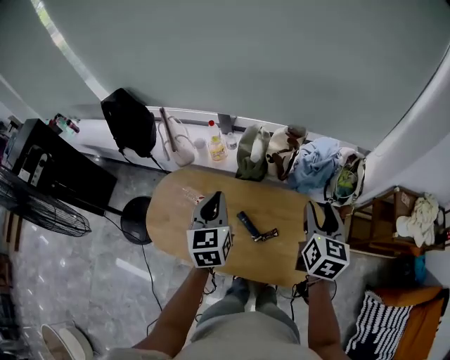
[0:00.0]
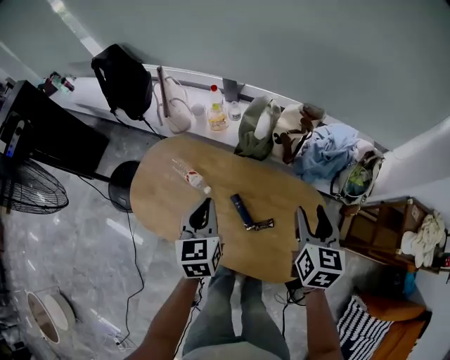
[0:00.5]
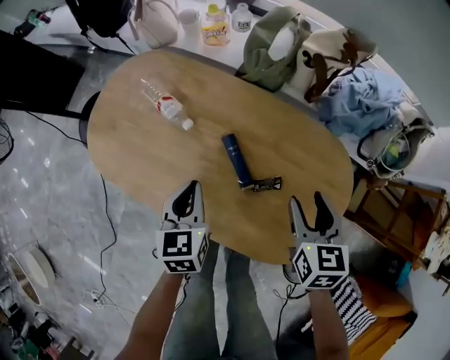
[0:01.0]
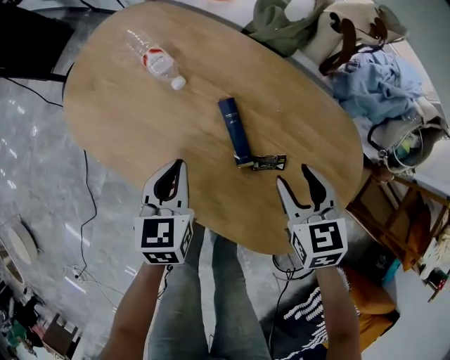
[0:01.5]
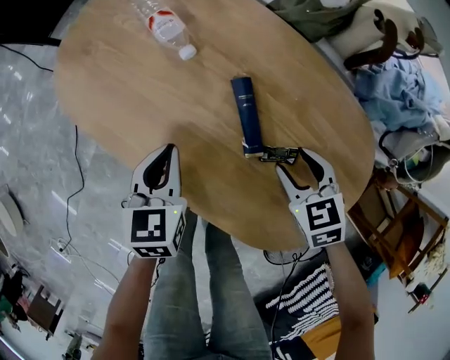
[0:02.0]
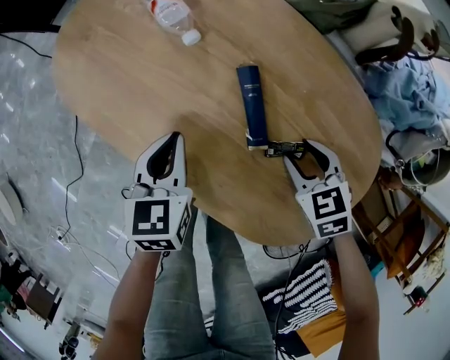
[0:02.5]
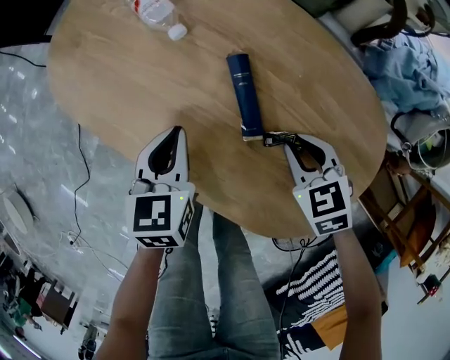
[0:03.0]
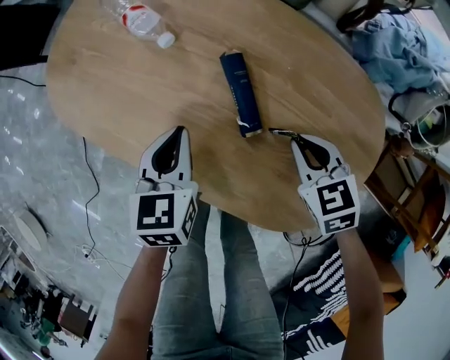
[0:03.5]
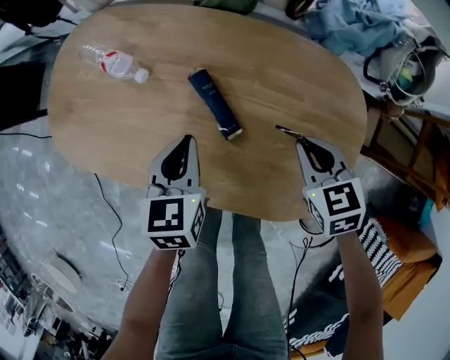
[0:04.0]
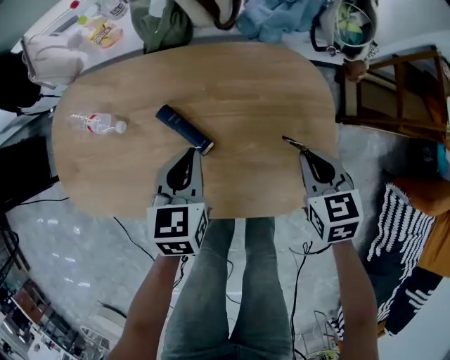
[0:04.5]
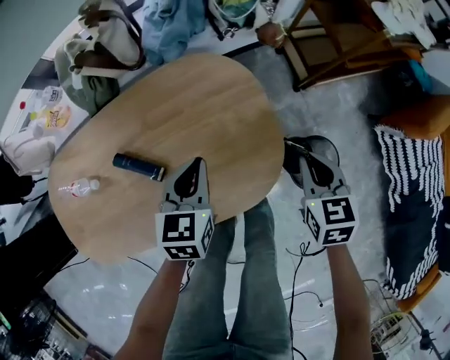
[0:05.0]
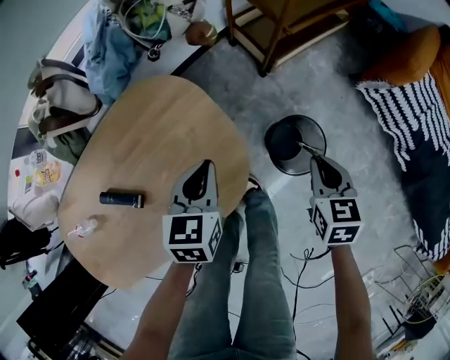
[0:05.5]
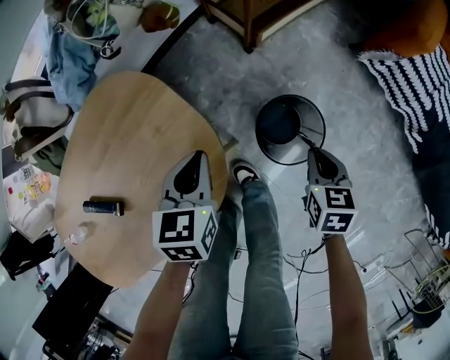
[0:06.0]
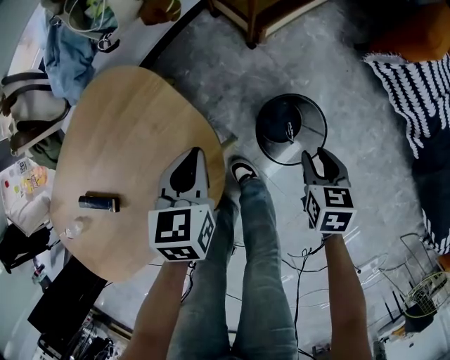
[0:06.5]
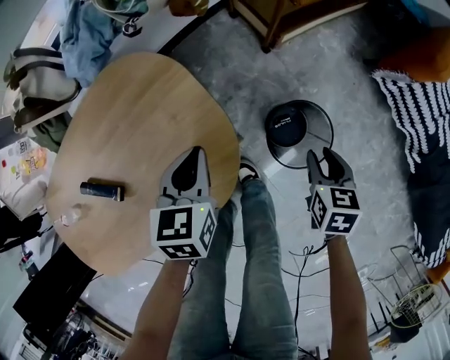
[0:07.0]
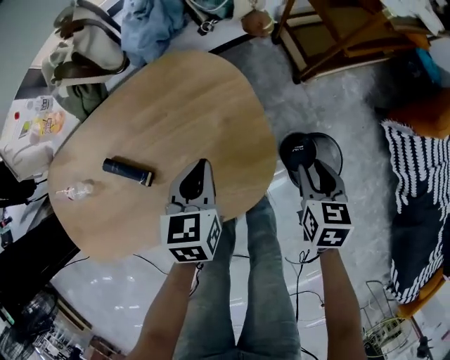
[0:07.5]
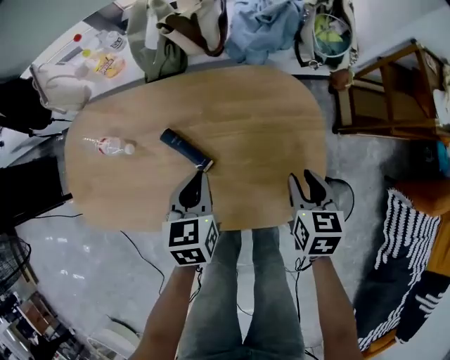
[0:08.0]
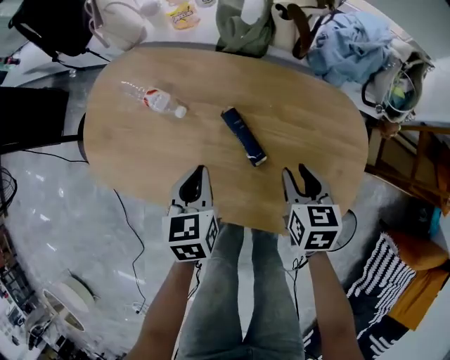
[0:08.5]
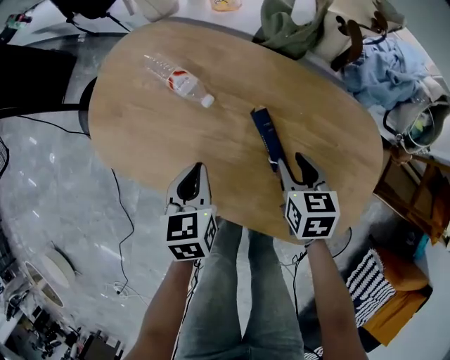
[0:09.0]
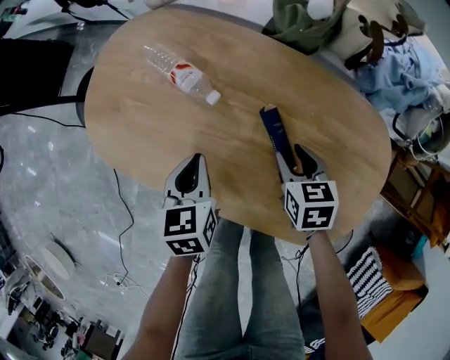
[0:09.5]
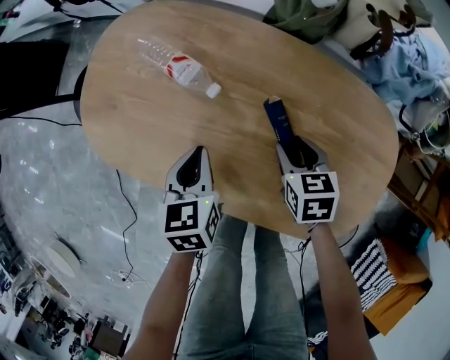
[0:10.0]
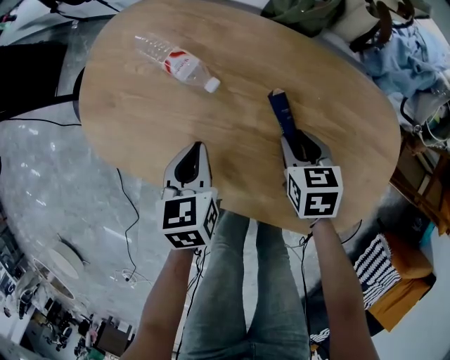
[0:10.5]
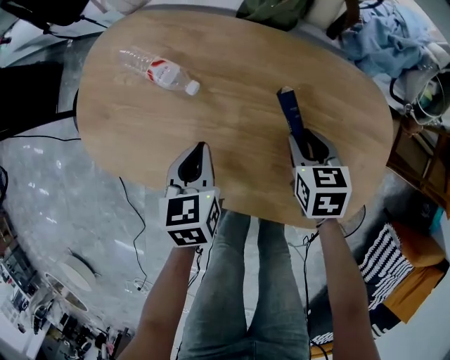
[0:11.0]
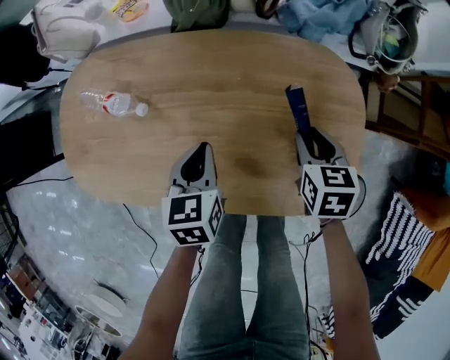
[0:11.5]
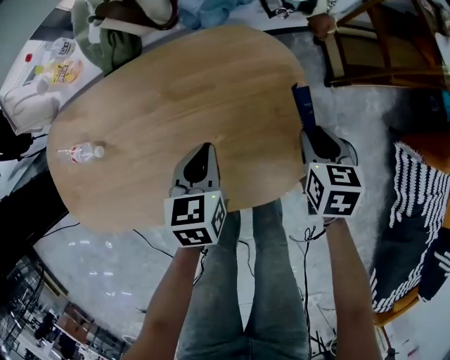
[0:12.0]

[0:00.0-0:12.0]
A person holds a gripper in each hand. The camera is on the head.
0:00.0 to 0:02.0: The grippers both shift downward by some 40 cm. The right gripper tilts its fingers about 40 degrees downward; the left gripper turns by about 30 degrees.
0:02.0 to 0:04.0: The left gripper moves approximately 10 cm, while the right gripper moves roughly 10 cm, turns by some 30 degrees, and closes its fingers.
0:04.0 to 0:06.0: The two grippers travel together, some 40 cm. The left gripper rotates about 60 degrees; the right gripper rotates around the line of its fingers by approximately 70 degrees, clockwise from behind.
0:06.0 to 0:08.0: The right gripper changes place by roughly 35 cm, rotates about 40 degrees, and opens up. Meanwhile the left gripper changes place by approximately 35 cm, and swivels roughly 40 degrees.
0:08.0 to 0:10.0: The left gripper shifts by about 25 cm, and rotates about 30 degrees; the right gripper shifts by about 30 cm, and turns by some 40 degrees.
0:10.0 to 0:12.0: The left gripper ends up approximately 30 cm from where it was, and turns by roughly 40 degrees. The right gripper moves about 35 cm, and rotates approximately 40 degrees.

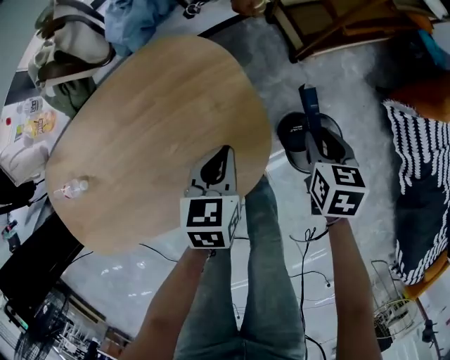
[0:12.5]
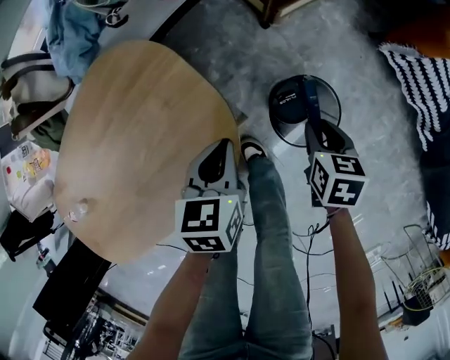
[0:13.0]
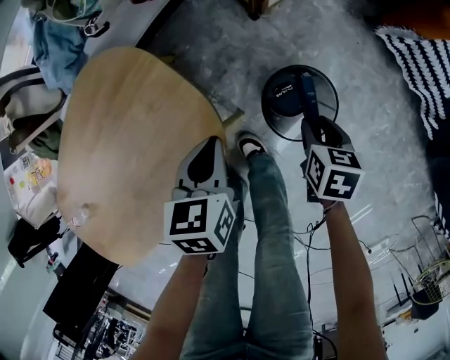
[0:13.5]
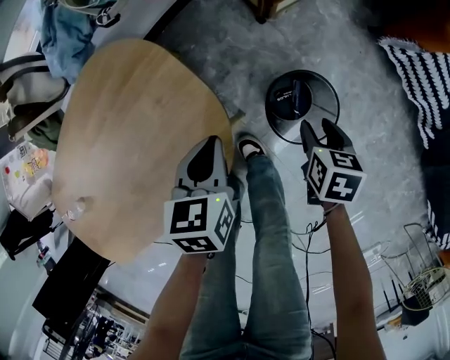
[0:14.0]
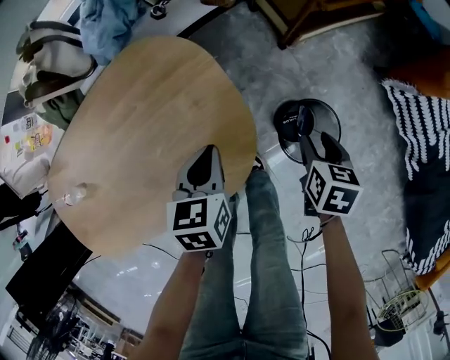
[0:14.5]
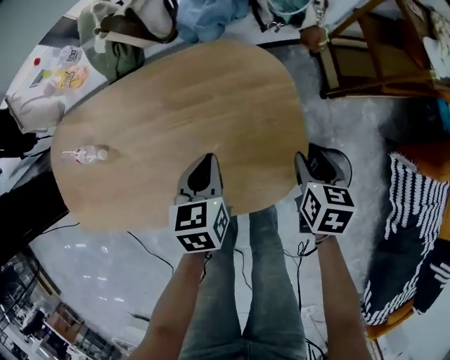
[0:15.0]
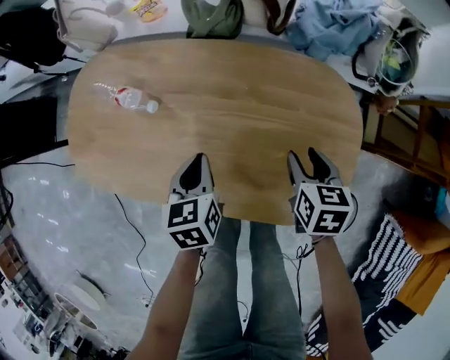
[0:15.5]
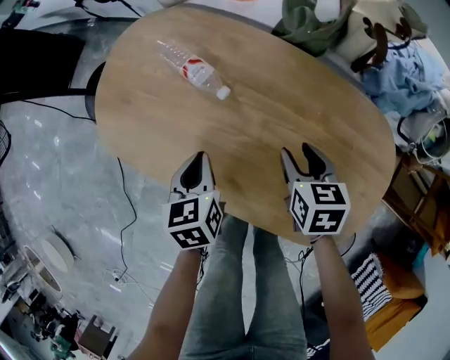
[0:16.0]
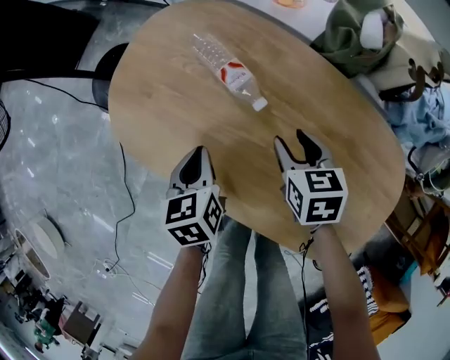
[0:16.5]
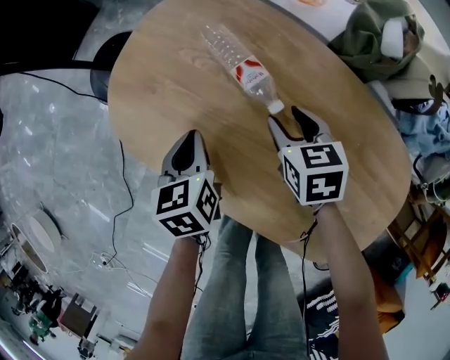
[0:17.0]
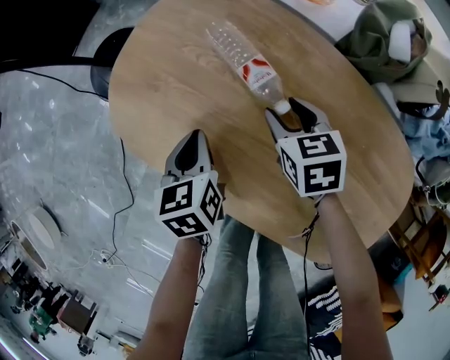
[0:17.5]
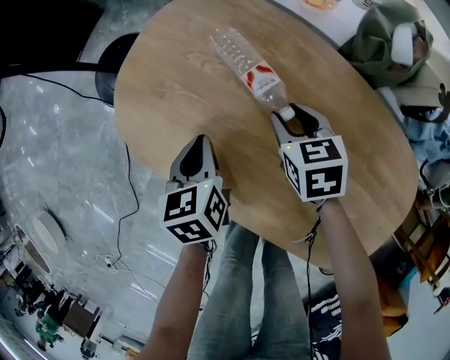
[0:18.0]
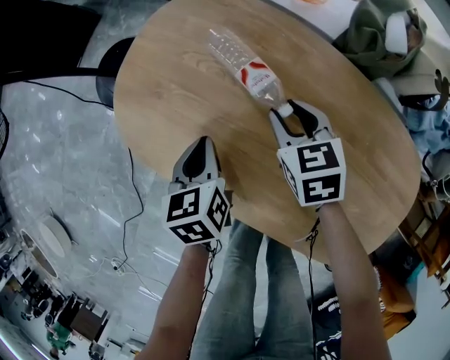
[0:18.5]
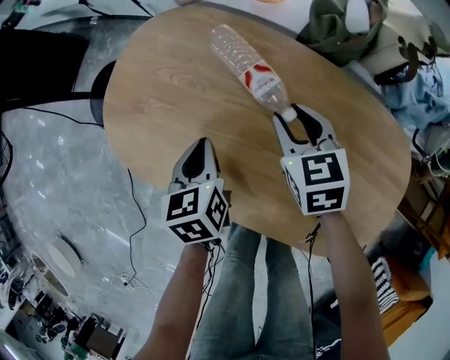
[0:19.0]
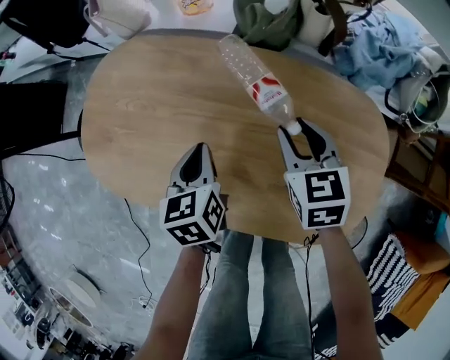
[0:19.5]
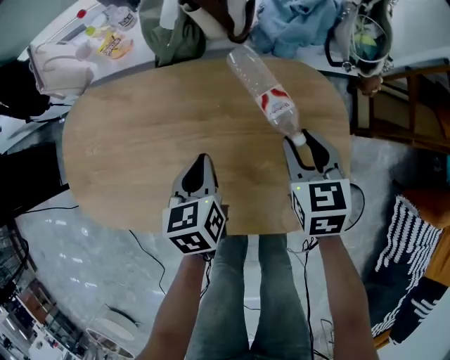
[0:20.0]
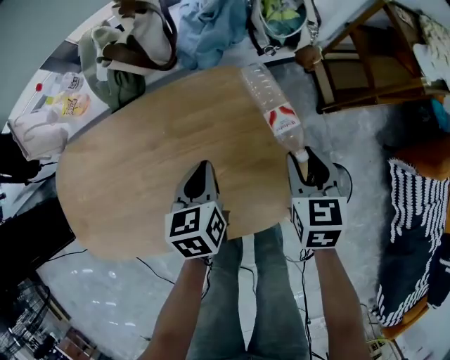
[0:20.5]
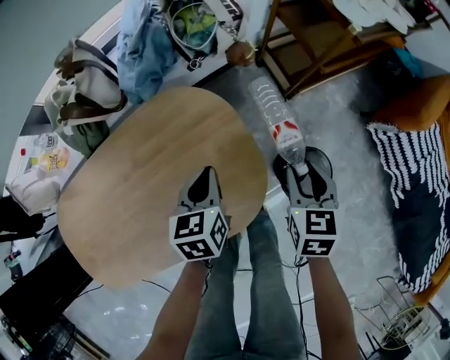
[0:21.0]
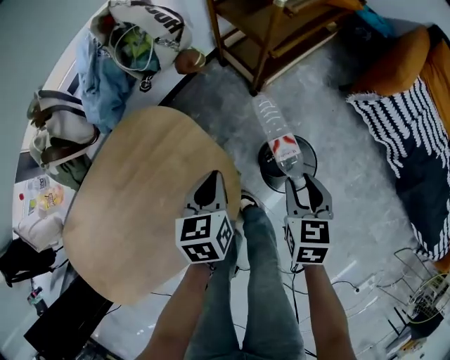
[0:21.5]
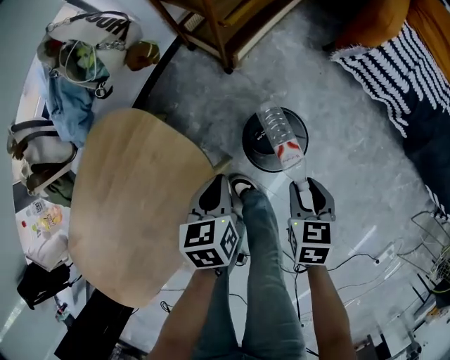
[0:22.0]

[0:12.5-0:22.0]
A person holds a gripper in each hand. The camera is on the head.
0:12.5 to 0:14.5: The right gripper heads to the right, covering roughly 5 cm; the left gripper travels to the right and back again, approximately 10 cm each way.
0:14.5 to 0:16.5: The two grippers travel together, roughly 60 cm. The left gripper turns by roughly 70 degrees. Meanwhile the right gripper twists some 60 degrees counterclockwise, seen from behind.
0:16.5 to 0:18.0: The left gripper ends up about 5 cm from where it was. Meanwhile the right gripper is displaced forward by about 10 cm.
0:18.0 to 0:20.0: The left gripper shifts by roughly 35 cm, and swivels some 40 degrees, while the right gripper moves some 40 cm, and turns by about 40 degrees.
0:20.0 to 0:22.0: The pair of grippers is taken approximately 40 cm. The left gripper turns by some 50 degrees; the right gripper swivels some 60 degrees.

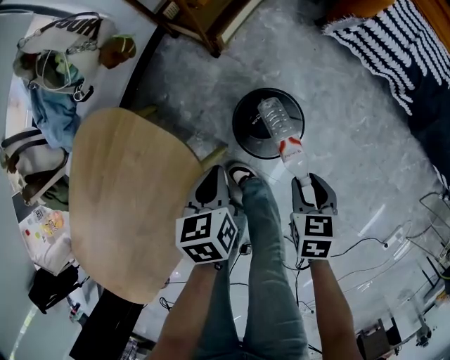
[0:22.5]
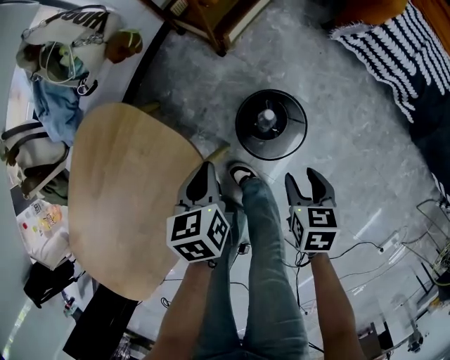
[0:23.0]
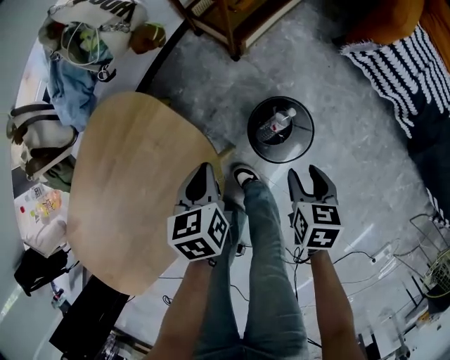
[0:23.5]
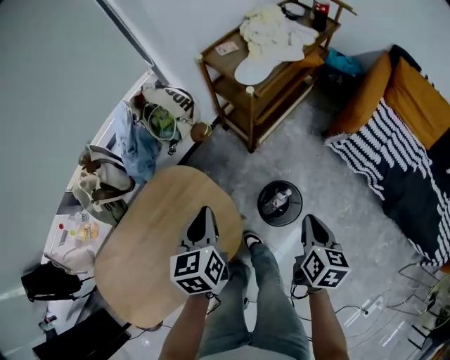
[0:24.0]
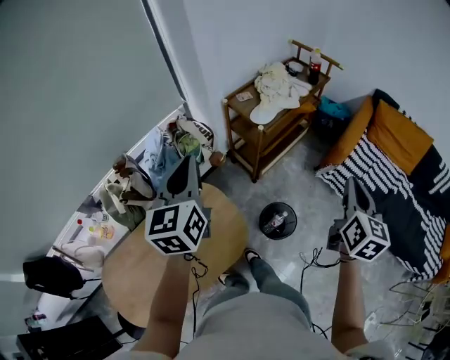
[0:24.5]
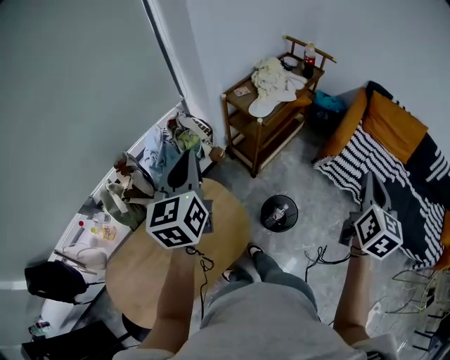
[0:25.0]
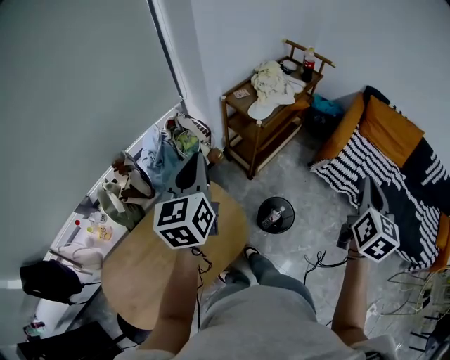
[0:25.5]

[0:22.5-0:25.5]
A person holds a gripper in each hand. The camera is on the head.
0:22.5 to 0:24.0: The left gripper travels upward by some 25 cm, and swivels about 20 degrees. Meanwhile the right gripper moves upward and forward, about 25 cm, swivels some 30 degrees, and closes.
0:24.0 to 0:25.5: Both grippers travel together upward, approximately 30 cm. The left gripper rotates about 30 degrees. Meanwhile the right gripper changes its angle by approximately 40 degrees.

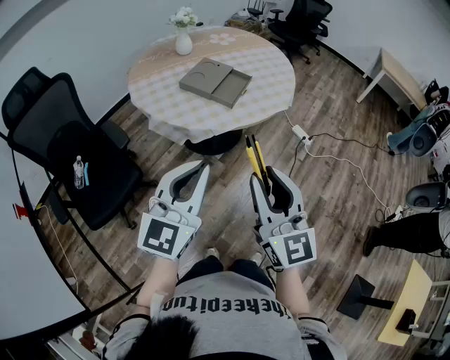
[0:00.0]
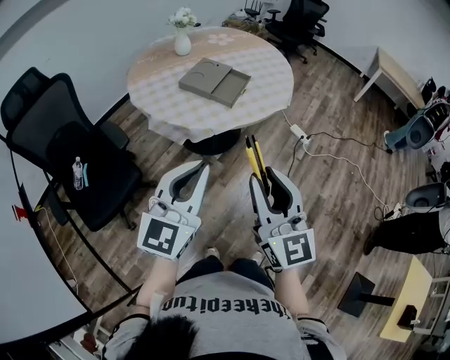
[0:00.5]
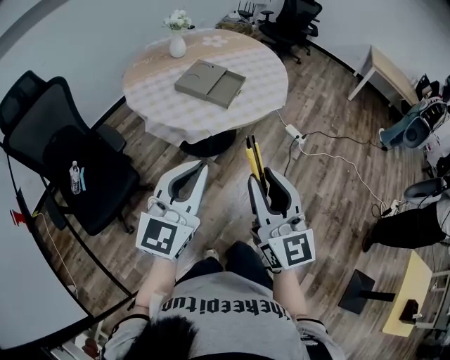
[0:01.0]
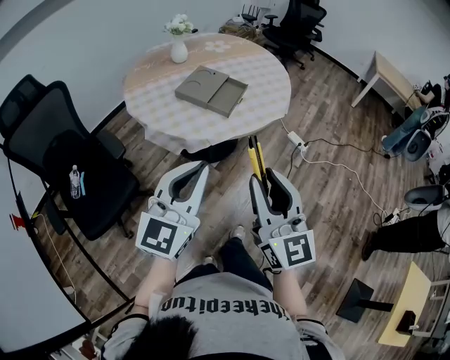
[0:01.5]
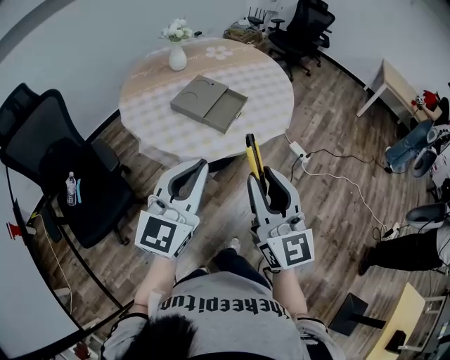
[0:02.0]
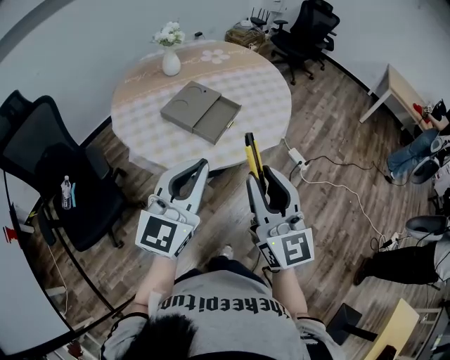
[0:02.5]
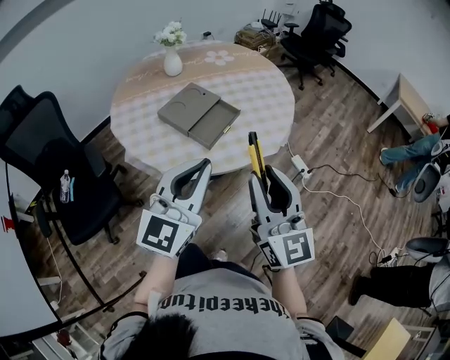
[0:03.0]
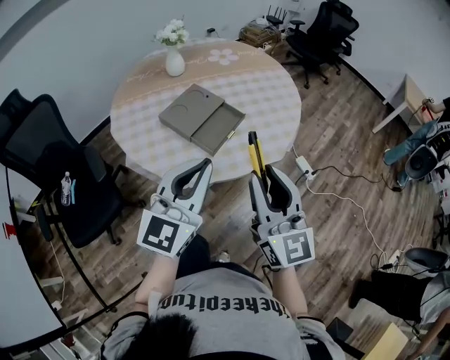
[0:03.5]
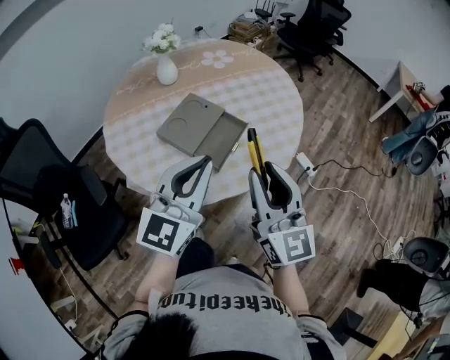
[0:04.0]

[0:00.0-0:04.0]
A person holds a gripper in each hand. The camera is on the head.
0:00.0 to 0:02.0: Both grippers travel together forward, some 10 cm.
0:02.0 to 0:04.0: The left gripper moves forward, approximately 15 cm; the right gripper moves forward and downward, some 15 cm.
